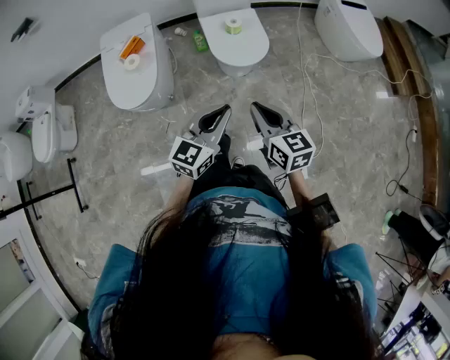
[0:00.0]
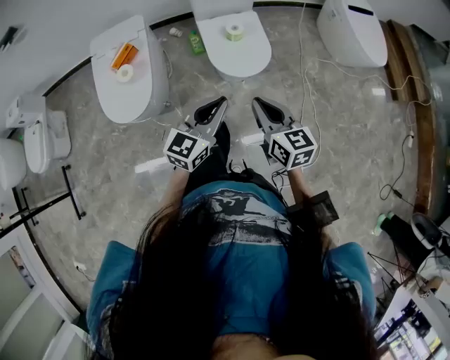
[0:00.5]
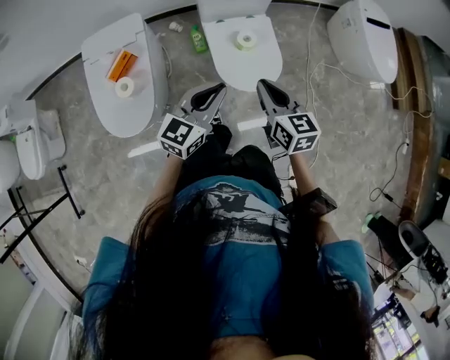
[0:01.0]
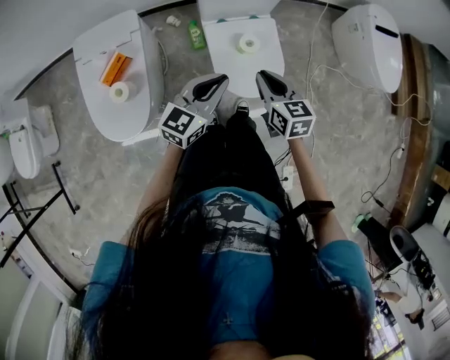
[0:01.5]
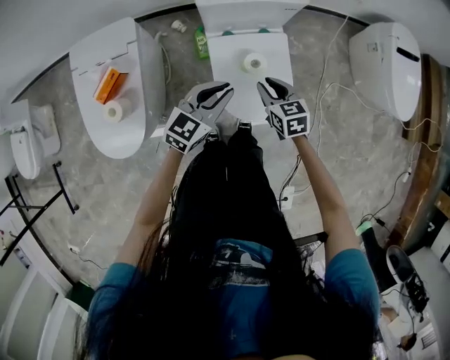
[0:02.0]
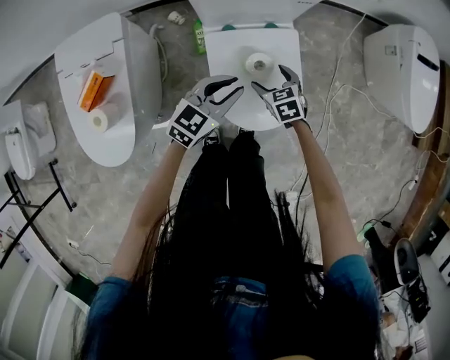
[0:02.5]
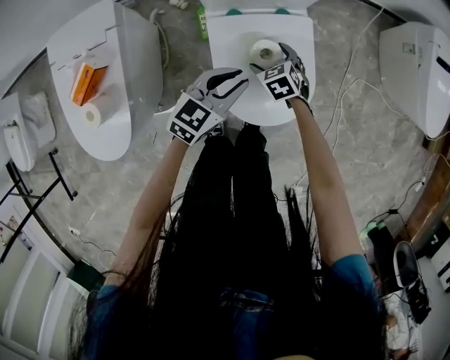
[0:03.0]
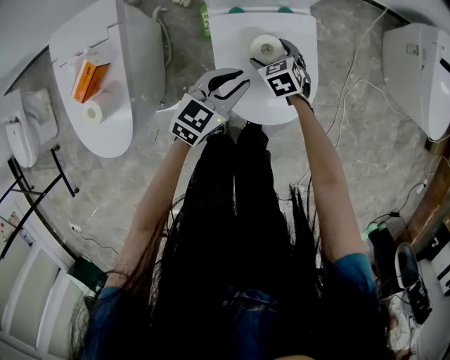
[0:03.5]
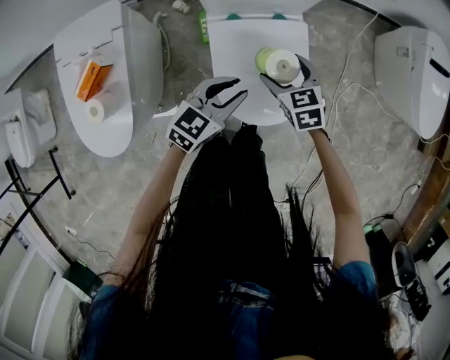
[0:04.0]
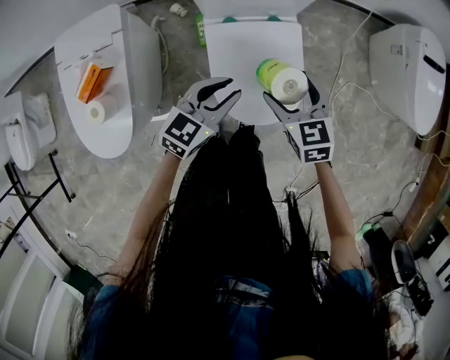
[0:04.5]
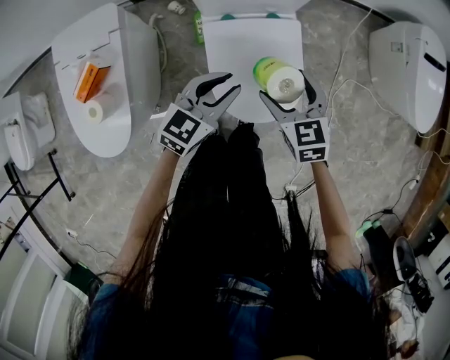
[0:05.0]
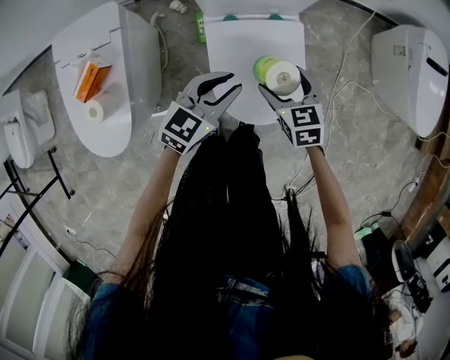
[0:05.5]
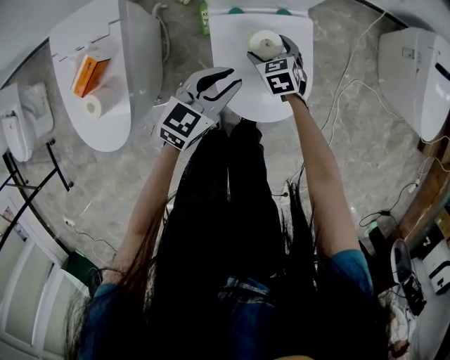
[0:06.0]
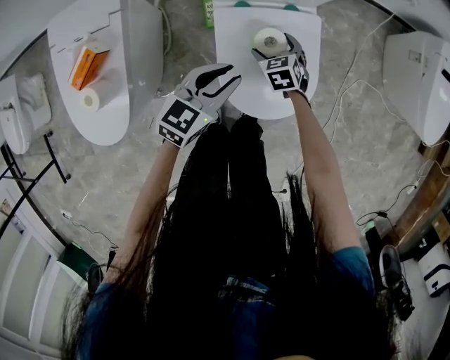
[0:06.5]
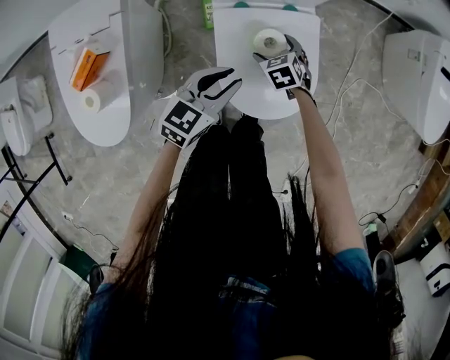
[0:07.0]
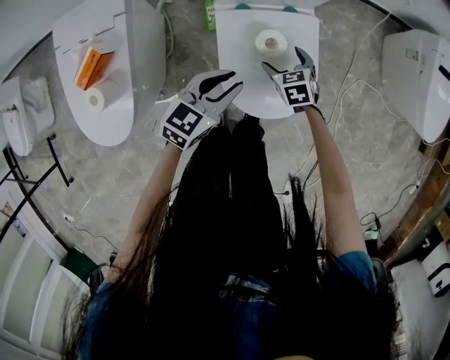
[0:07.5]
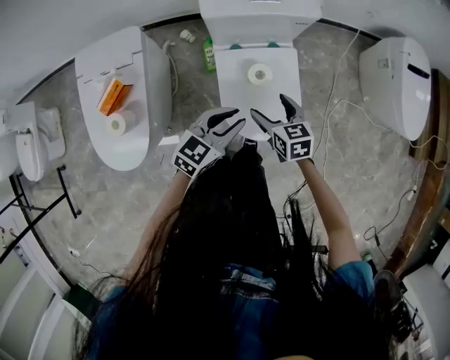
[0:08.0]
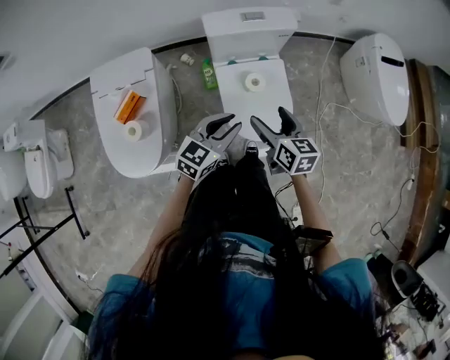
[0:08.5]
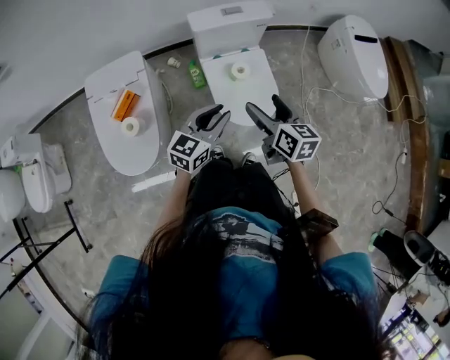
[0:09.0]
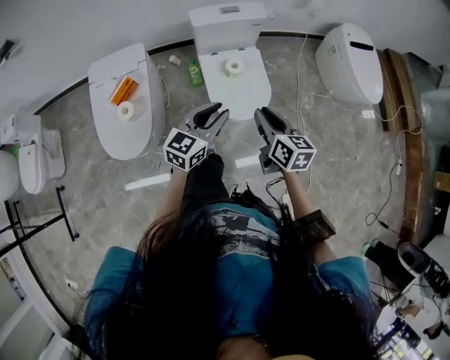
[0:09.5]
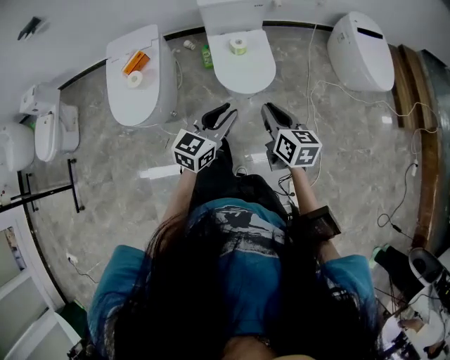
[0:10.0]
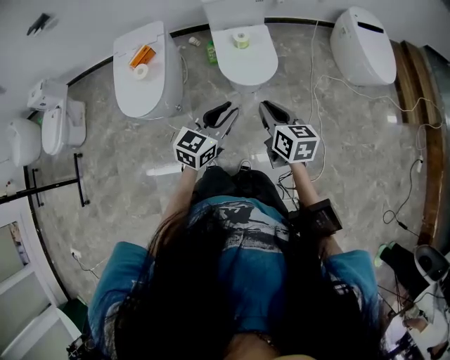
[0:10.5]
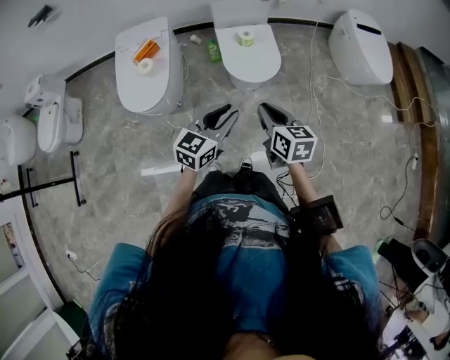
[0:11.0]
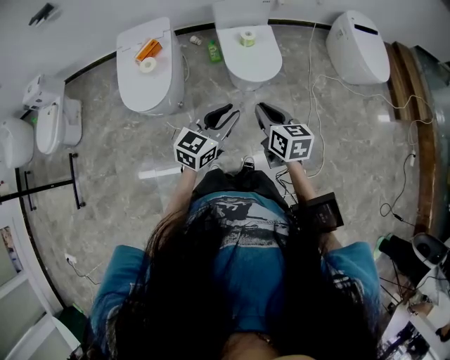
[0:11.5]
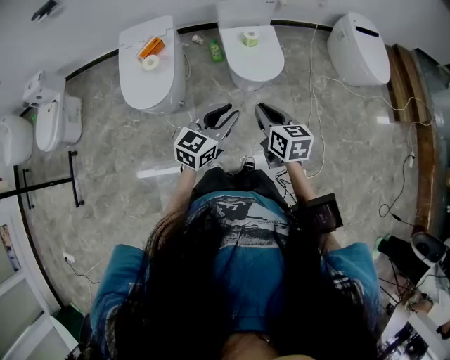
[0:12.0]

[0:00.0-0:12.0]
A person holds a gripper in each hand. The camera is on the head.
0.0 to 2.0 s: The pair of grippers is taken forward, approximately 50 cm. The right gripper shifts approximately 25 cm downward, and rotates approximately 30 degrees.
2.0 to 4.0 s: The left gripper shifts about 10 cm downward. Meanwhile the right gripper moves downward and forward, approximately 10 cm, and opens.
4.0 to 6.0 s: The right gripper is displaced downward by some 10 cm.
6.0 to 8.0 s: The right gripper travels upward and backward by approximately 20 cm, and changes its angle by about 20 degrees. The left gripper moves upward and backward, about 10 cm.
8.0 to 10.0 s: The two grippers go roughly 40 cm backward and upward. The right gripper rotates roughly 20 degrees, and closes up.
10.0 to 12.0 s: The grippers both shift backward and to the left by approximately 15 cm.

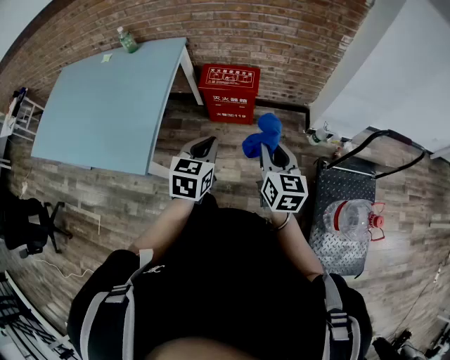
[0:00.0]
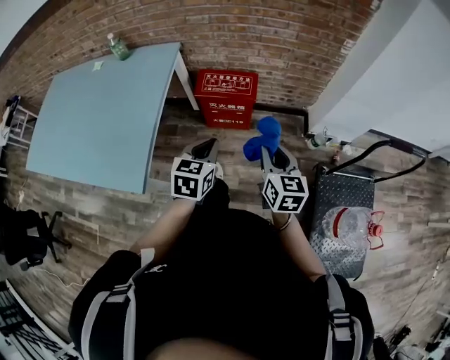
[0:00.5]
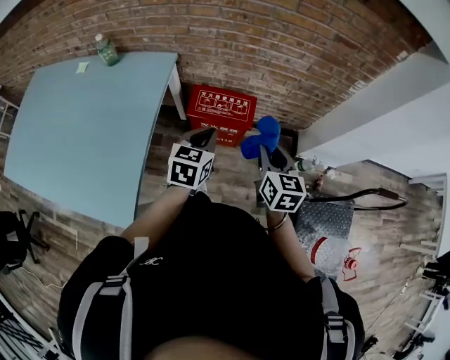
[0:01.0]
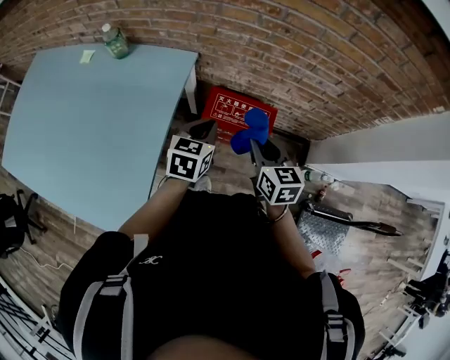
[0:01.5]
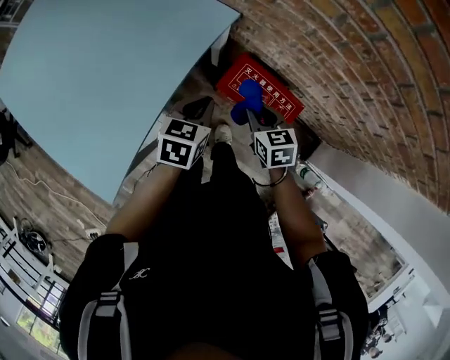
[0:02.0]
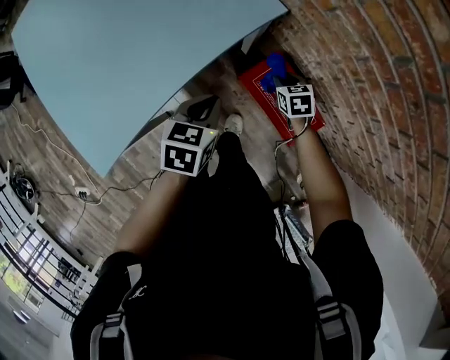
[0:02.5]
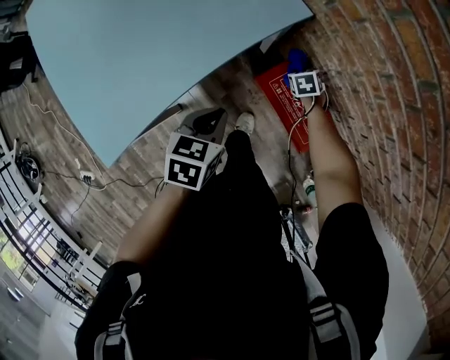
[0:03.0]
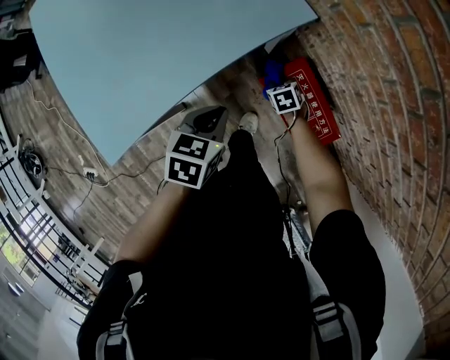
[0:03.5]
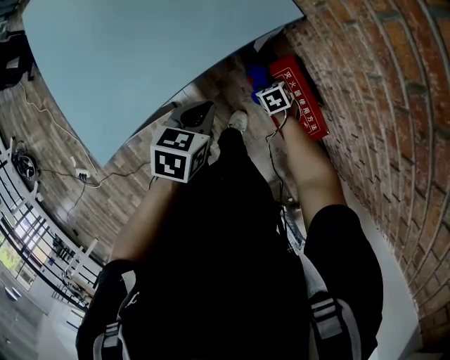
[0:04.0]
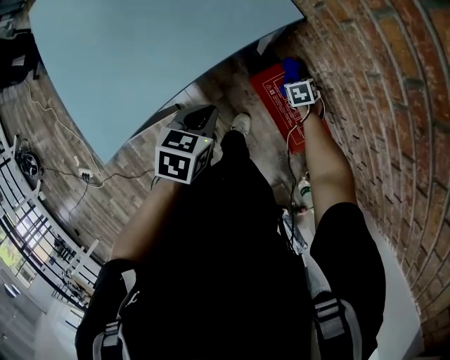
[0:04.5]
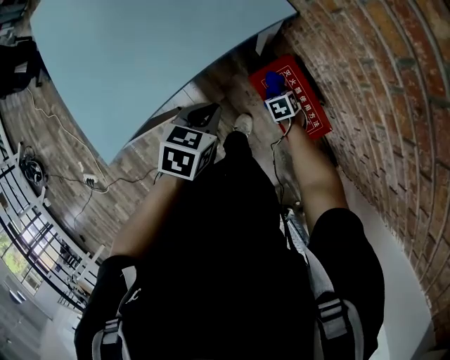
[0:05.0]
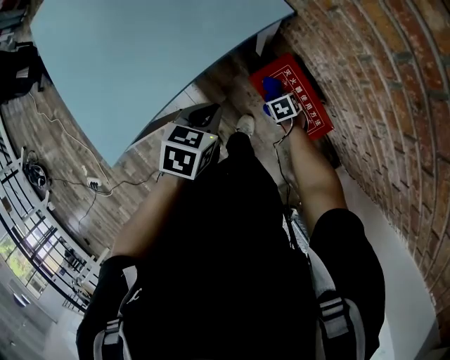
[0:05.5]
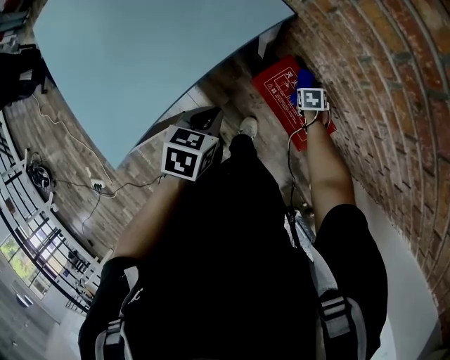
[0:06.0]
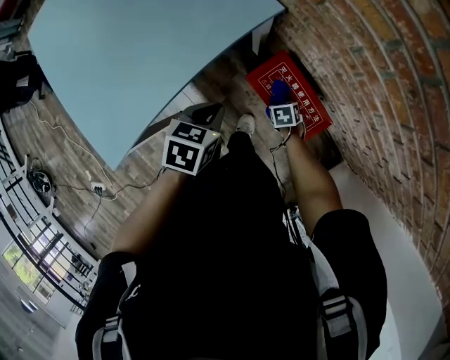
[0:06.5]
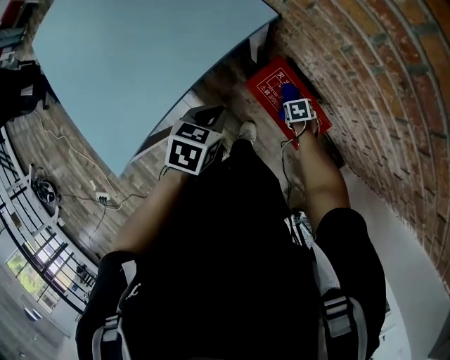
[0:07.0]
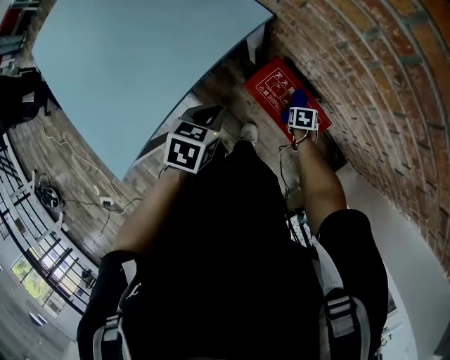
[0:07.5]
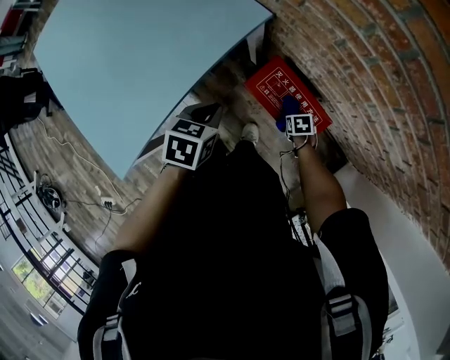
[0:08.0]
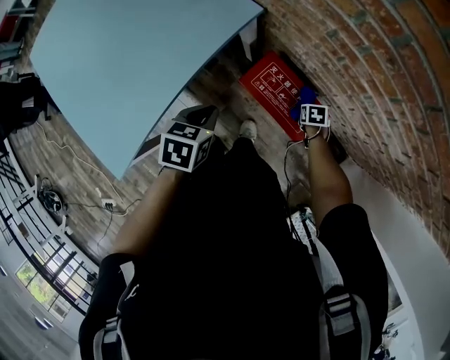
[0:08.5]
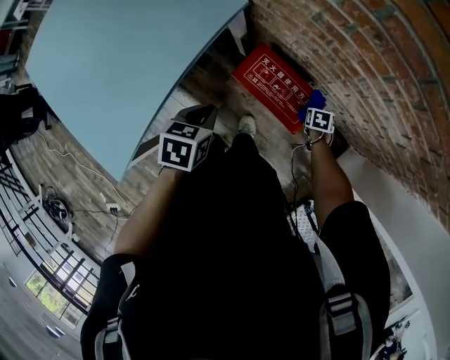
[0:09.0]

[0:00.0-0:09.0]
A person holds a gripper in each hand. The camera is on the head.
0.0 to 2.0 s: The pair of grippers is taken roughly 50 cm. The left gripper rotates roughly 30 degrees. The right gripper changes its angle by roughly 50 degrees.
2.0 to 4.5 s: The left gripper changes place by approximately 5 cm, and swivels some 20 degrees. Meanwhile the right gripper is displaced downward by some 25 cm, and turns by some 40 degrees.
4.5 to 7.0 s: The right gripper shifts by about 10 cm.
7.0 to 9.0 s: The right gripper changes place by about 15 cm, and turns by some 30 degrees.

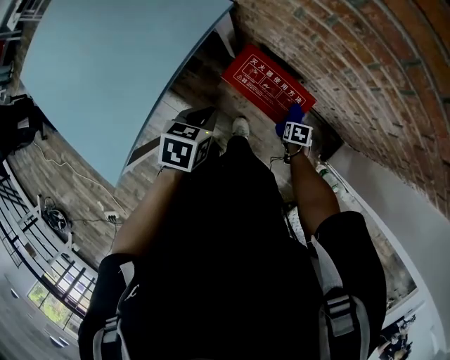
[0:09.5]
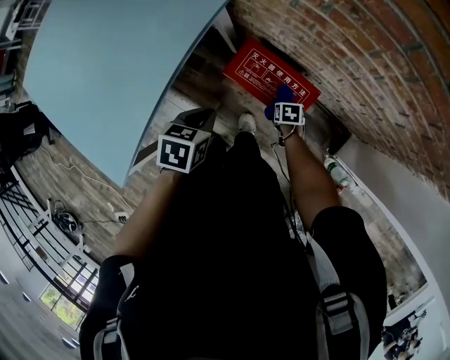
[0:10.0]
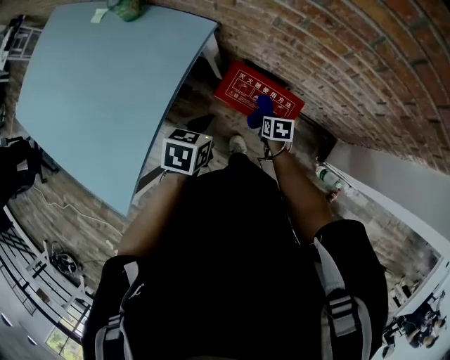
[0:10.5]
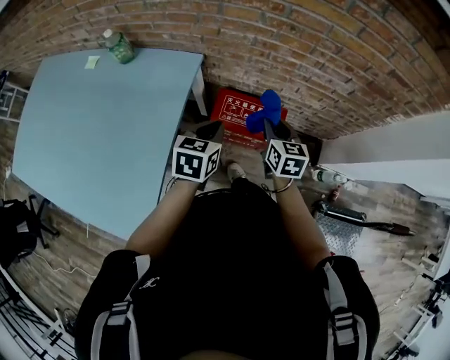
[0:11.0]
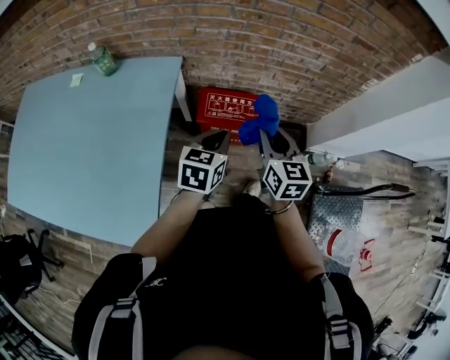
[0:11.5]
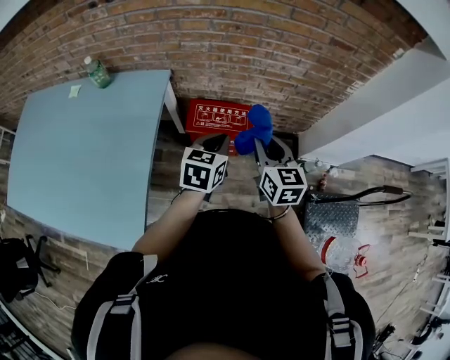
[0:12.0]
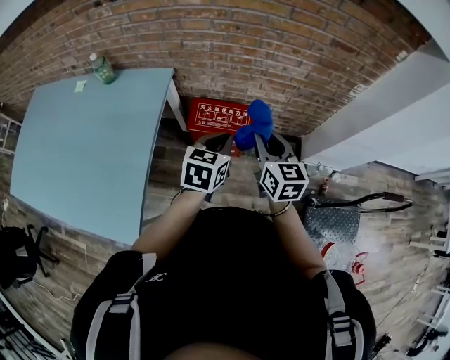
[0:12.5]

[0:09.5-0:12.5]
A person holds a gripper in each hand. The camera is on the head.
9.5 to 11.0 s: The right gripper is displaced upward by some 35 cm, and angles its fingers upward, by some 50 degrees. The left gripper moves upward, roughly 10 cm, and changes its angle by approximately 30 degrees.
11.0 to 12.5 s: The left gripper shifts approximately 15 cm to the right and backward. The right gripper goes roughly 20 cm backward, upward and to the right.

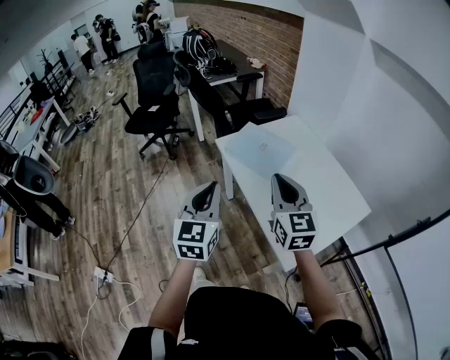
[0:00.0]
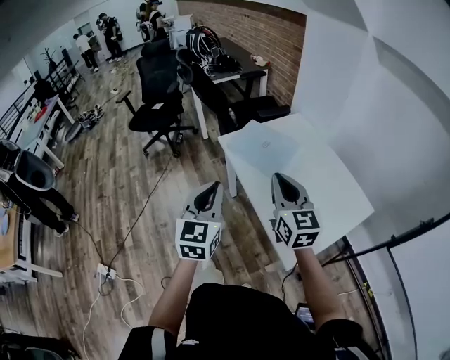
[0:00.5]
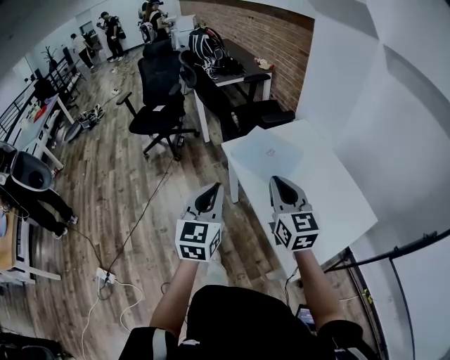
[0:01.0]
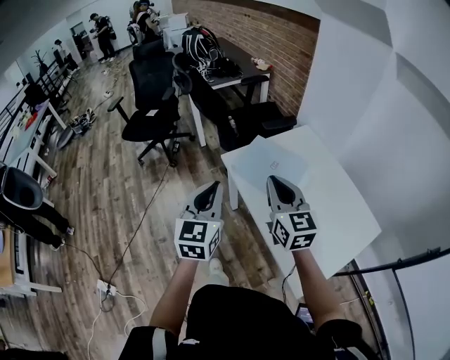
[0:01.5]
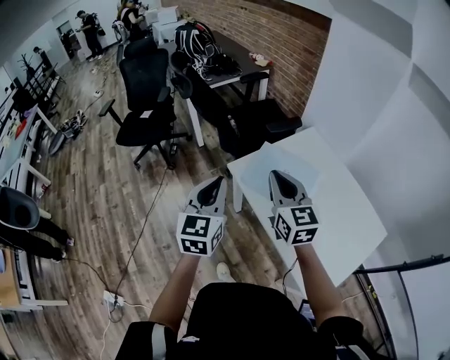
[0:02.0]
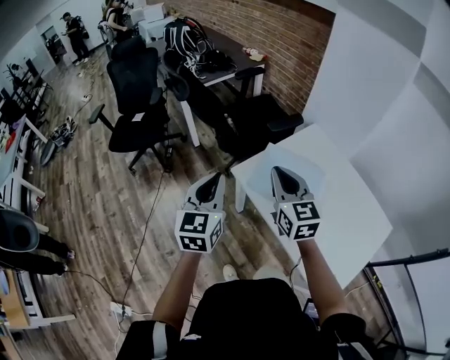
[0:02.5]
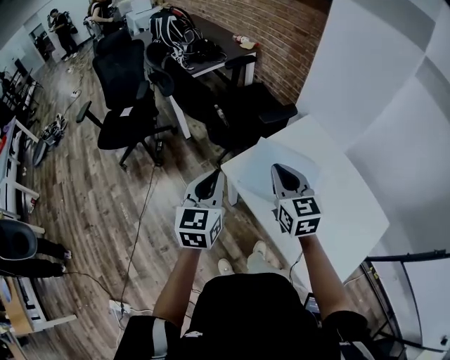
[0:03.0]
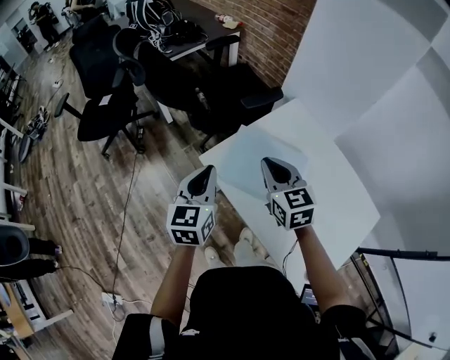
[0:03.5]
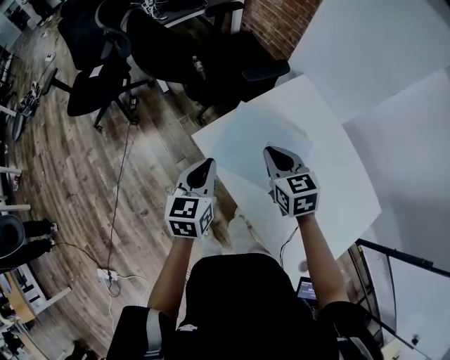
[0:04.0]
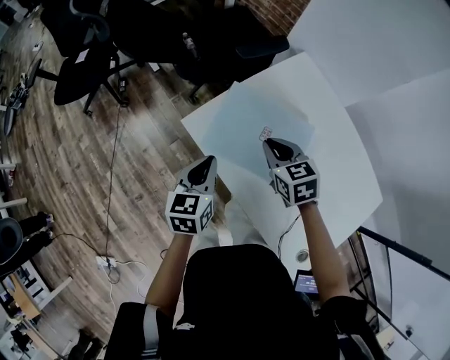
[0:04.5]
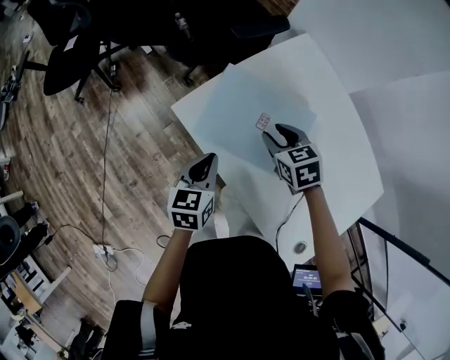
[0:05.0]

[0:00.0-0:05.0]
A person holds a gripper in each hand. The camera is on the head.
0.0 to 2.5 s: The two grippers go approximately 35 cm forward and to the left.
2.5 to 5.0 s: The two grippers go about 30 cm downward and to the right. The right gripper points its fingers some 40 degrees further downward, and opens its fingers. The left gripper swivels roughly 30 degrees.
